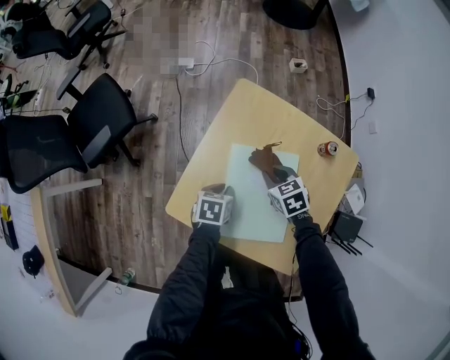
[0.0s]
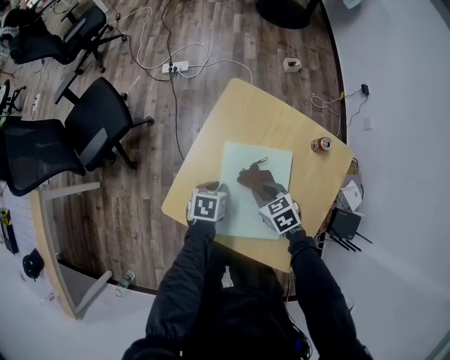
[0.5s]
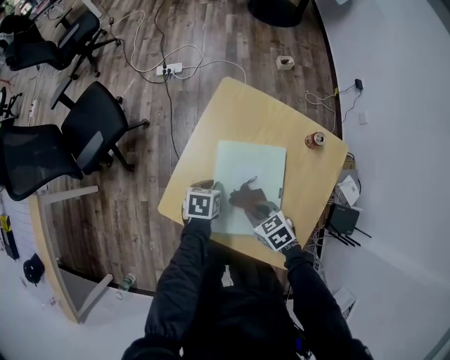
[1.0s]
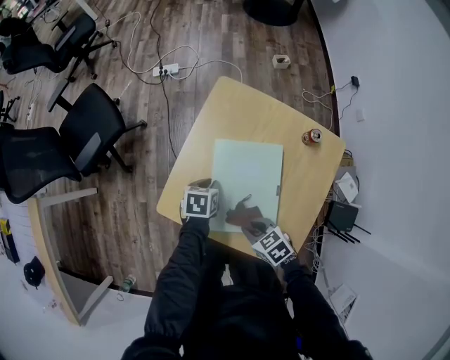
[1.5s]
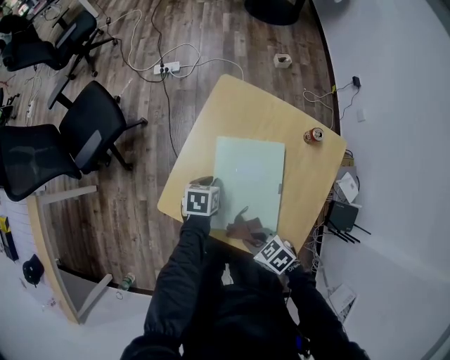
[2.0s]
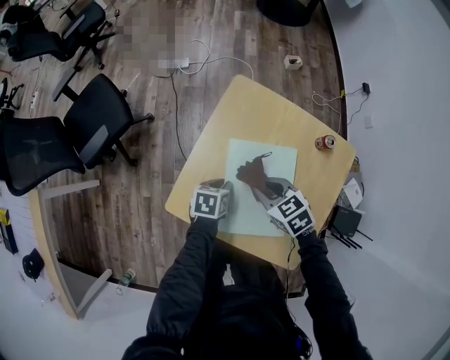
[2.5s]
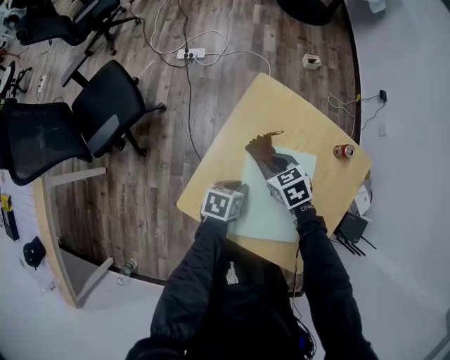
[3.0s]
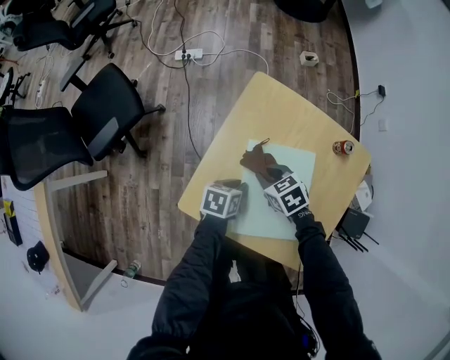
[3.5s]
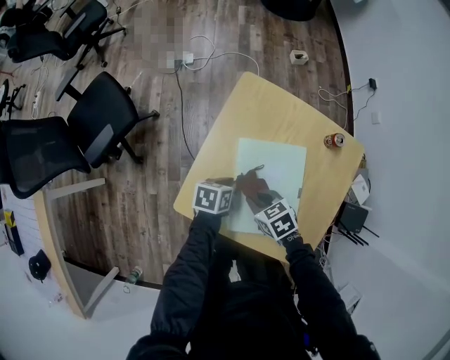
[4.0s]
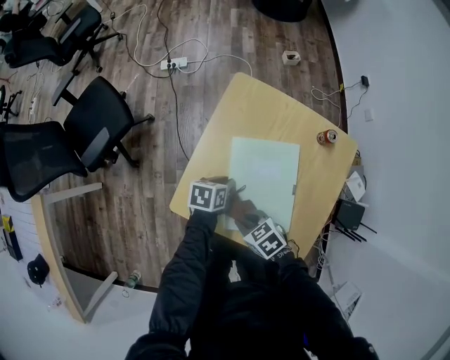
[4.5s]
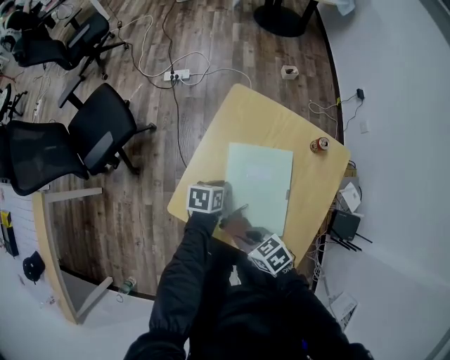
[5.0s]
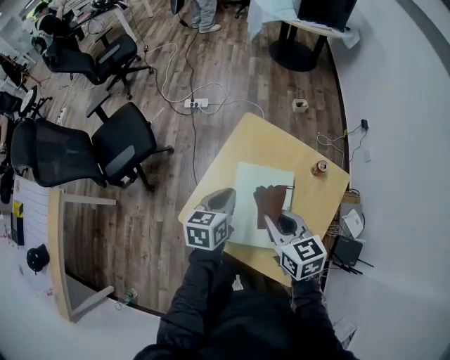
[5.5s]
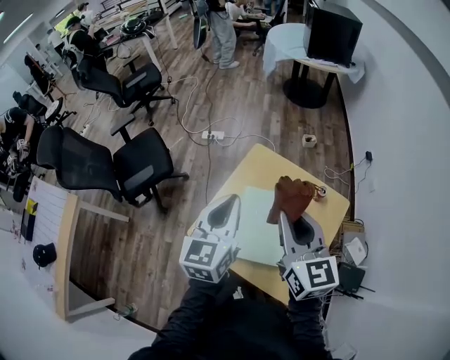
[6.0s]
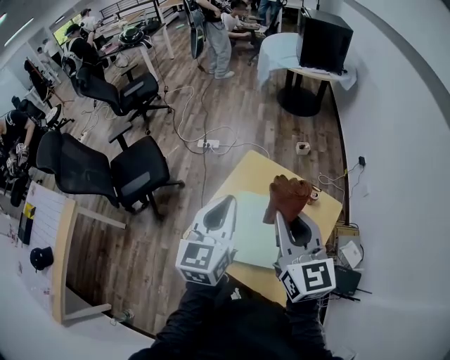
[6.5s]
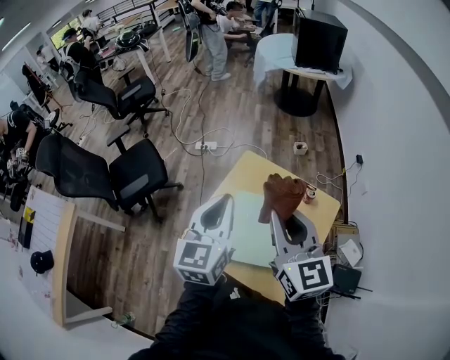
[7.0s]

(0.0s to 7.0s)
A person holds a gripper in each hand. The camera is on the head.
0.0s - 2.0s: The right gripper moves some 25 cm, and turns by some 20 degrees.
2.0s - 3.5s: The right gripper ends up roughly 25 cm from where it was.
3.5s - 5.0s: The right gripper changes place by approximately 20 cm.
5.0s - 7.0s: Both grippers travel together upward, some 40 cm. The left gripper tips its fingers upward by about 40 degrees. The right gripper tilts its fingers some 40 degrees upward.

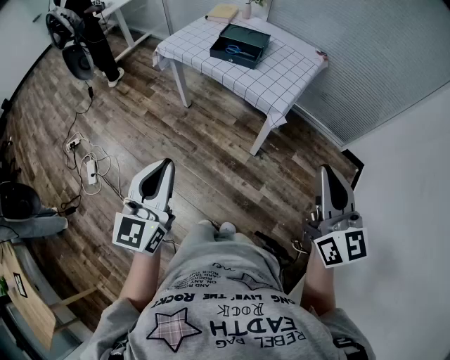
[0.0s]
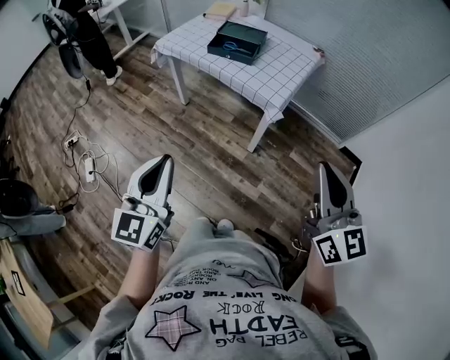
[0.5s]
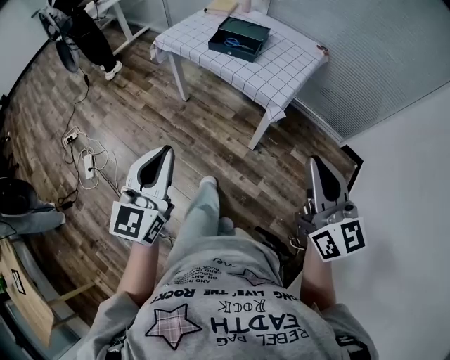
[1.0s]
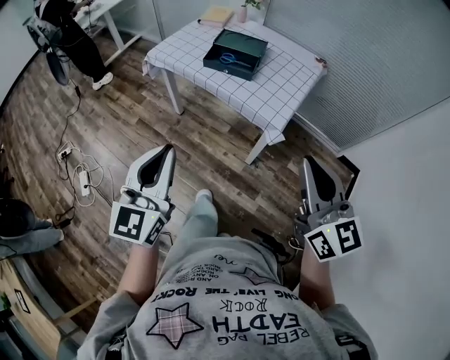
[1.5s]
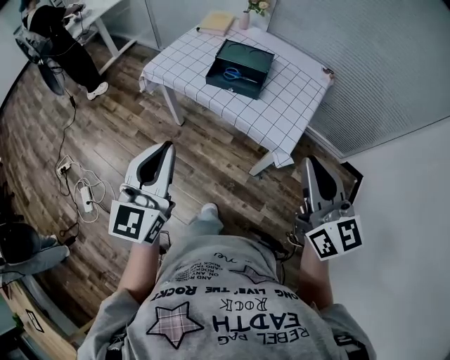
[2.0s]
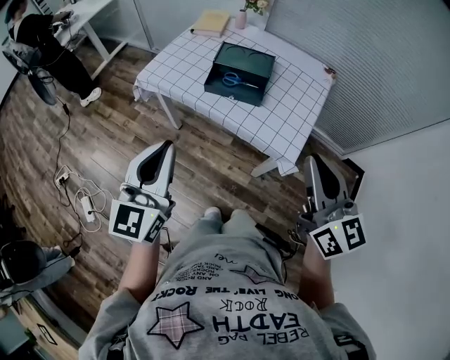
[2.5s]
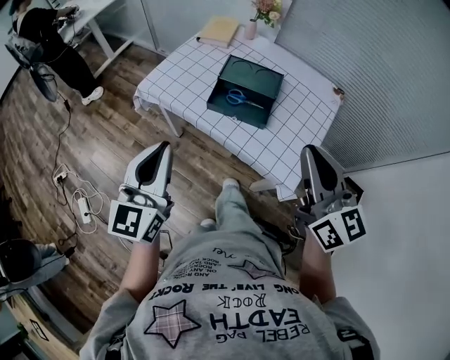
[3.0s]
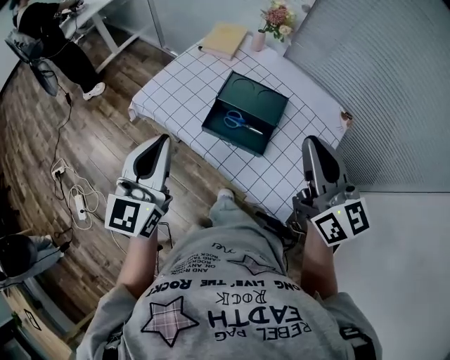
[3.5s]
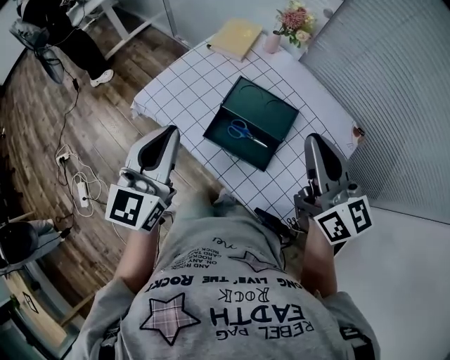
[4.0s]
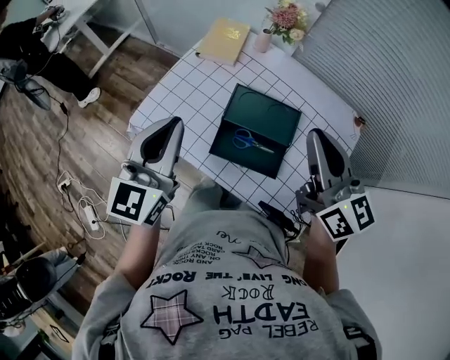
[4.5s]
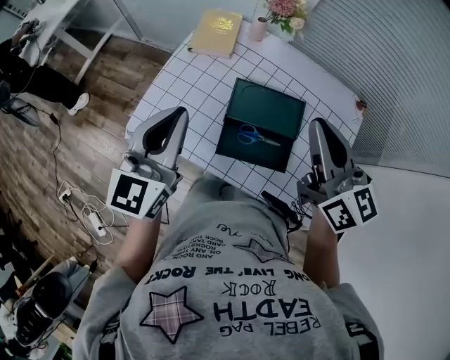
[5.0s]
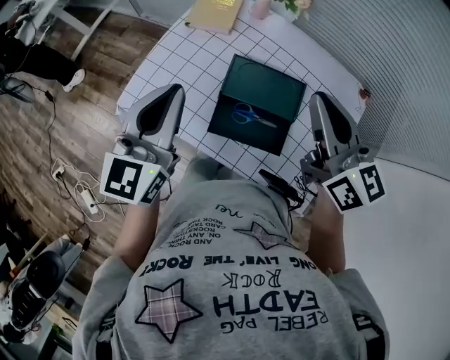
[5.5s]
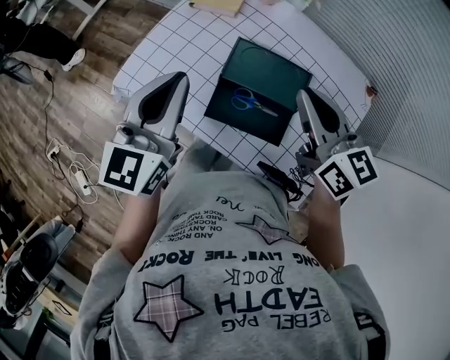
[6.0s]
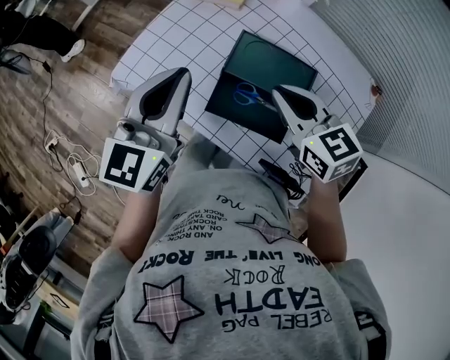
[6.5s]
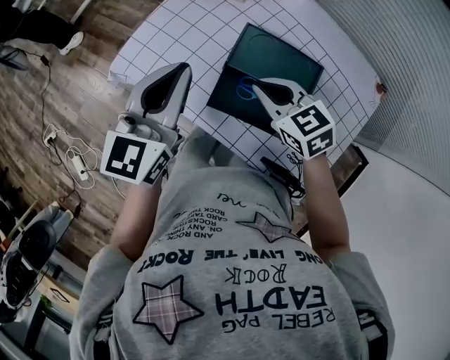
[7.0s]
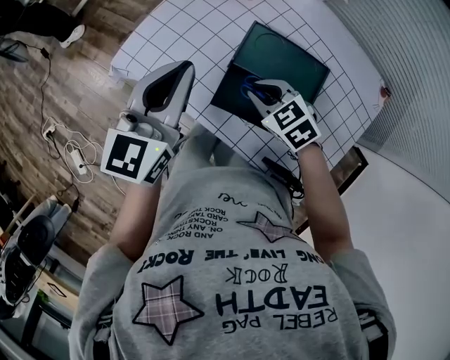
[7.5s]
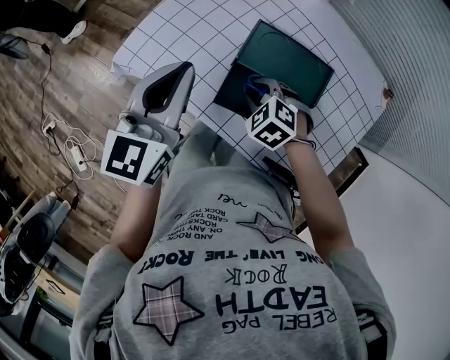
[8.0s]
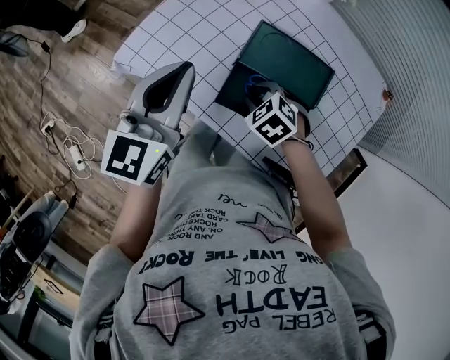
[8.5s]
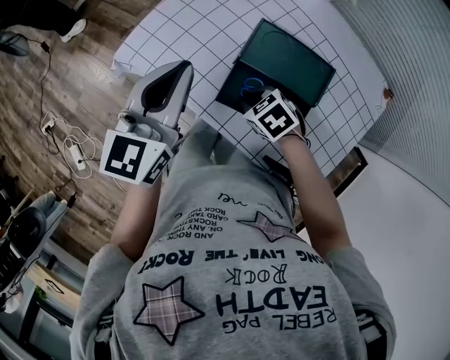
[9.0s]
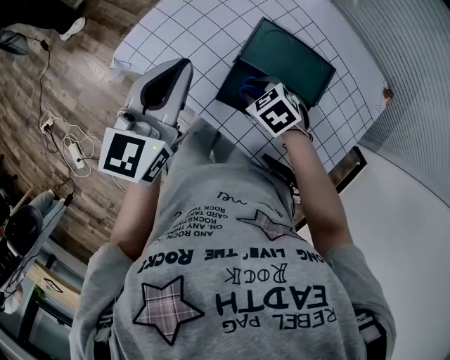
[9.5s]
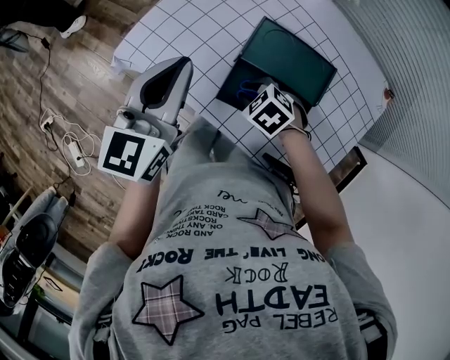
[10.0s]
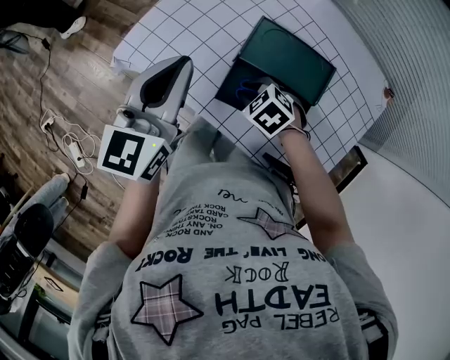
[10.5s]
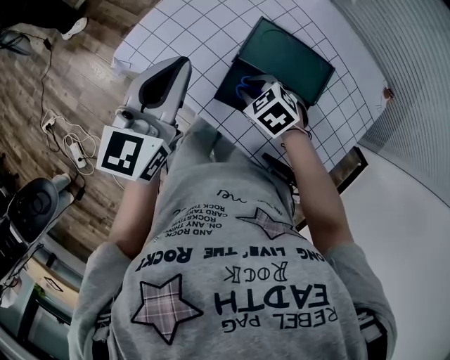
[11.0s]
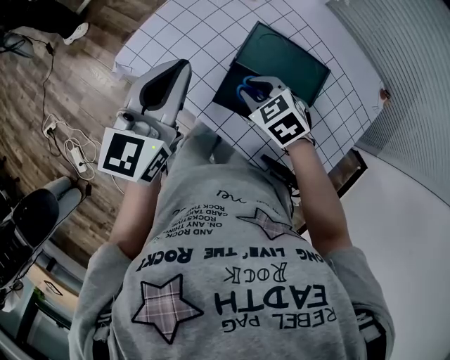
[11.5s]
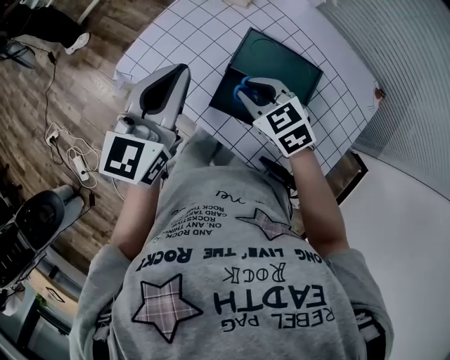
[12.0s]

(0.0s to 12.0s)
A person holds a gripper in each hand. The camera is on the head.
0.0s - 2.0s: The grippers both shift forward by approximately 25 cm.
2.0s - 4.0s: Both grippers move forward, approximately 40 cm.
4.0s - 6.0s: The right gripper moves downward and forward, some 10 cm; the left gripper moves forward, about 10 cm.
6.0s - 8.0s: The right gripper moves downward, approximately 25 cm, and points its fingers about 50 degrees further downward; the left gripper goes roughly 5 cm downward.
10.0s - 12.0s: The right gripper moves upward, roughly 10 cm, and swivels roughly 30 degrees.

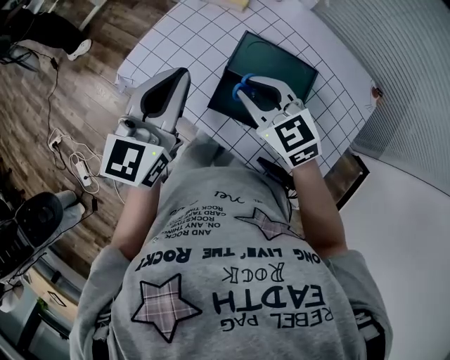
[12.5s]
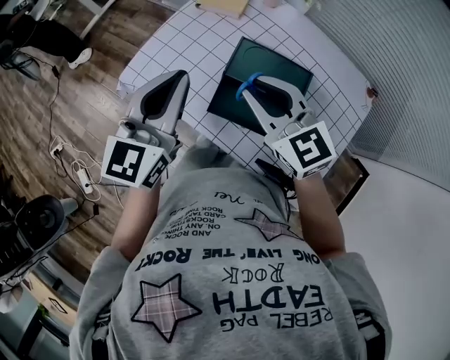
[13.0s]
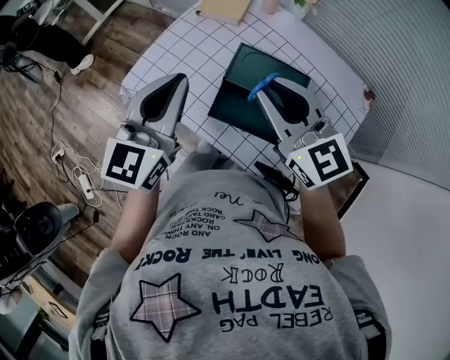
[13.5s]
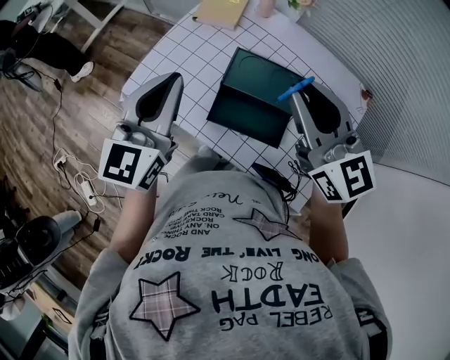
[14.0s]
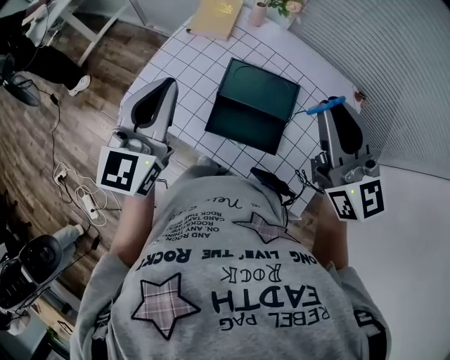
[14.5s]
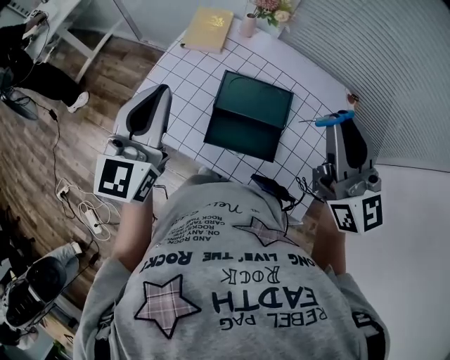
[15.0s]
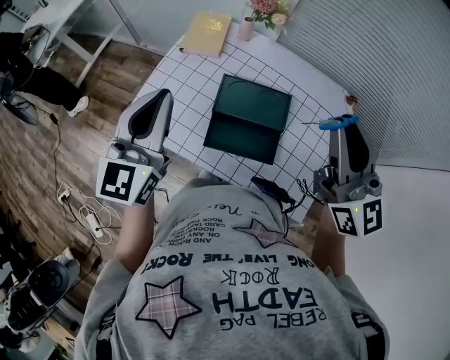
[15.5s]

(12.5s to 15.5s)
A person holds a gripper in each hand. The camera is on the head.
12.5s - 14.0s: The right gripper moves upward and to the right, about 20 cm, and rotates approximately 30 degrees.
14.0s - 15.5s: The right gripper goes roughly 10 cm to the right and upward, and rotates some 20 degrees.

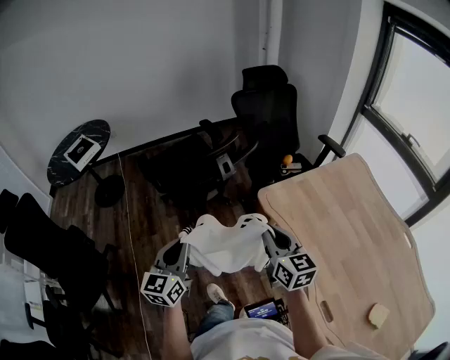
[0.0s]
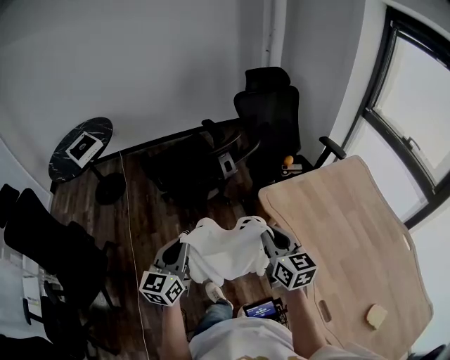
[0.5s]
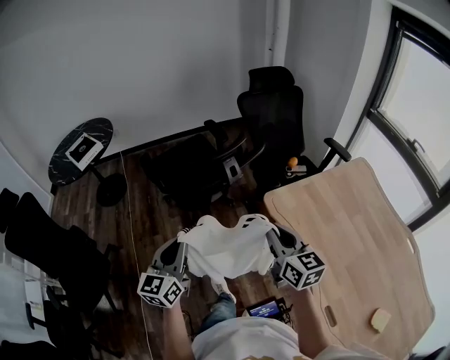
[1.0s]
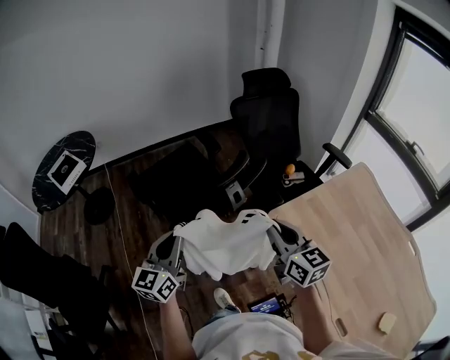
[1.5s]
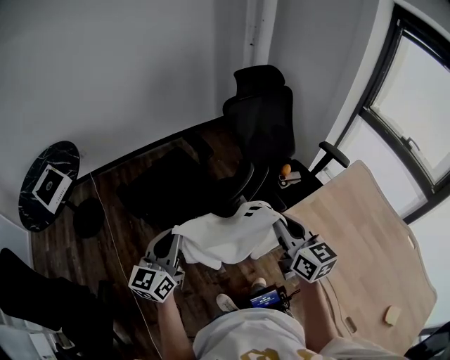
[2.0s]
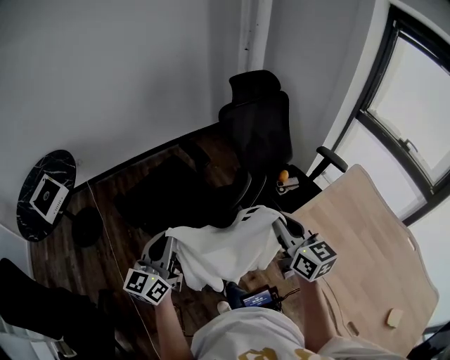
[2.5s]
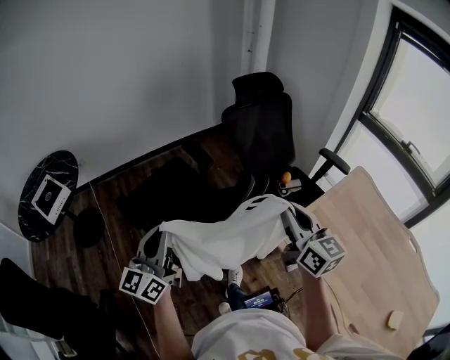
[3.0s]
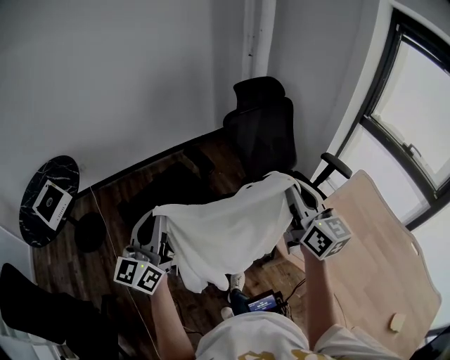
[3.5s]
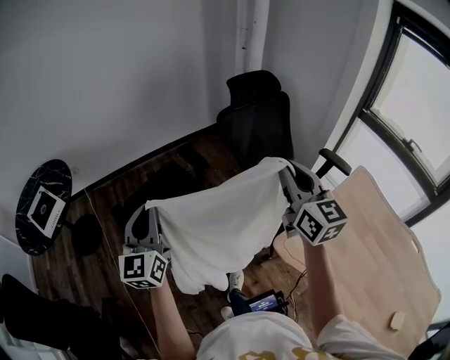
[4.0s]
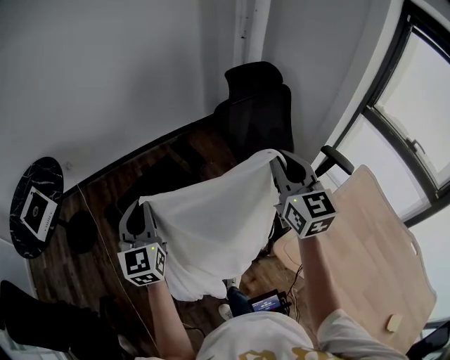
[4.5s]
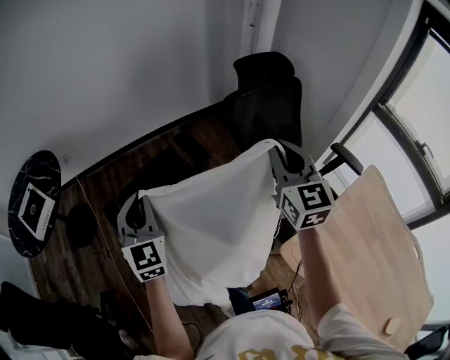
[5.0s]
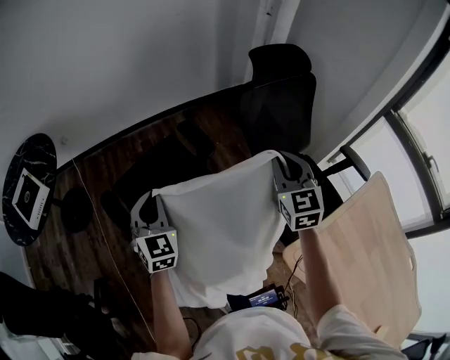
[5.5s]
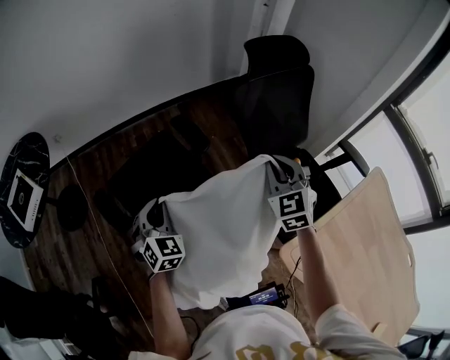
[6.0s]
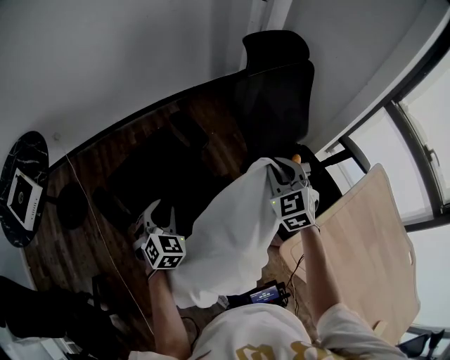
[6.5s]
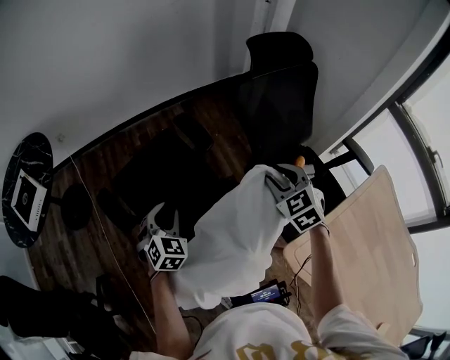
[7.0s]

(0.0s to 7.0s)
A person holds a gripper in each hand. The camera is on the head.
0.0s - 2.0s: Both grippers travel together forward, some 25 cm.
2.0s - 3.5s: Both grippers travel together upward and forward, approximately 15 cm.
3.5s - 5.0s: The right gripper is displaced forward by some 20 cm, and swivels approximately 20 degrees; the left gripper moves forward and downward, approximately 20 cm, and swivels approximately 50 degrees.
5.0s - 7.0s: The grippers both shift downward by roughly 20 cm. The left gripper points its fingers roughly 30 degrees further downward, and opens up; the right gripper points its fingers approximately 30 degrees further downward, and opens its fingers.
